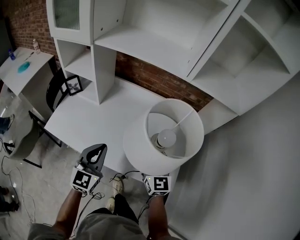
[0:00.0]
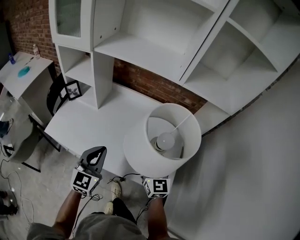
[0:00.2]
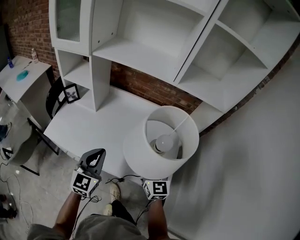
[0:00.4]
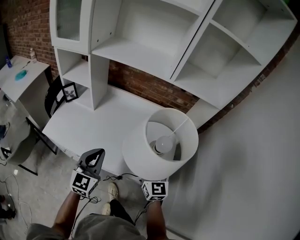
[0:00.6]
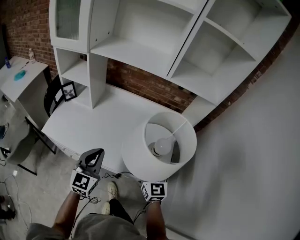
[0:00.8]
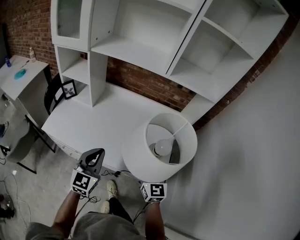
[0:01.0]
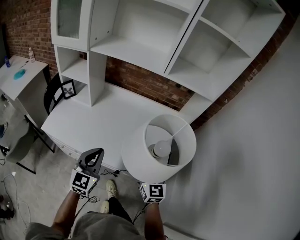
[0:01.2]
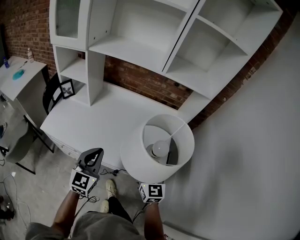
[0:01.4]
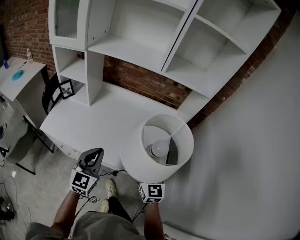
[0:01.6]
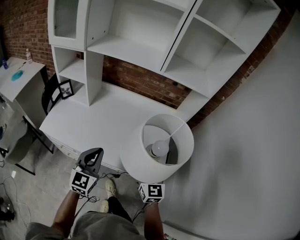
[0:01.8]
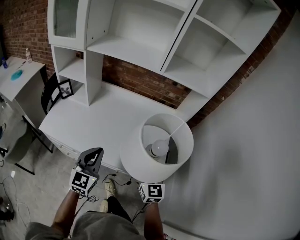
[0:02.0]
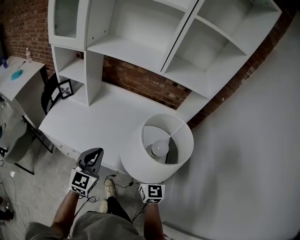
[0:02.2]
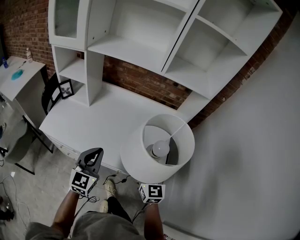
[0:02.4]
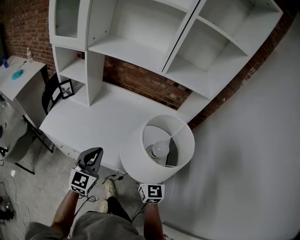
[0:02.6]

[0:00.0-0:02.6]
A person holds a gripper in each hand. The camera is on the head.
0:00.0 to 0:01.2: The two grippers go approximately 10 cm backward.
0:01.2 to 0:02.6: Both grippers stay about where they are.

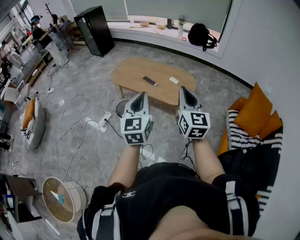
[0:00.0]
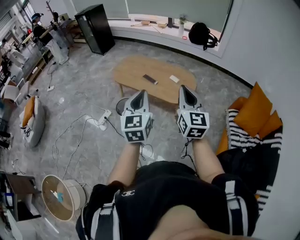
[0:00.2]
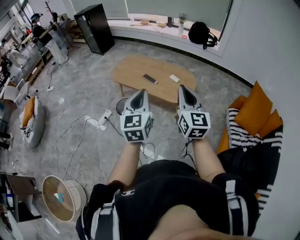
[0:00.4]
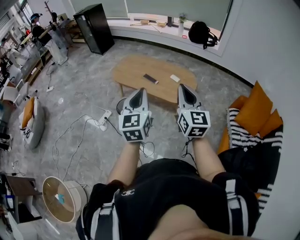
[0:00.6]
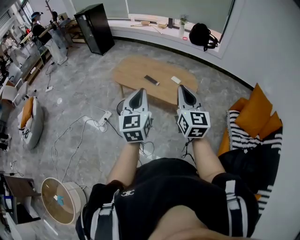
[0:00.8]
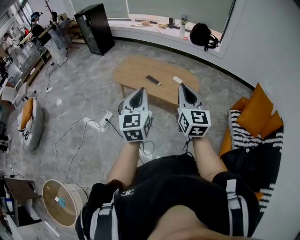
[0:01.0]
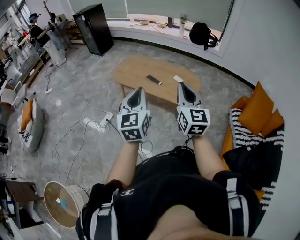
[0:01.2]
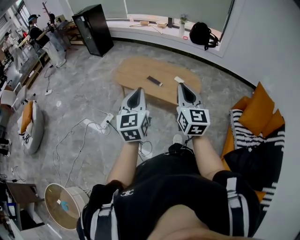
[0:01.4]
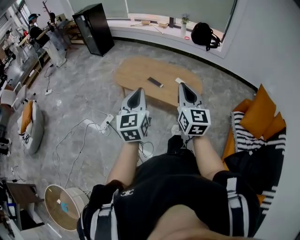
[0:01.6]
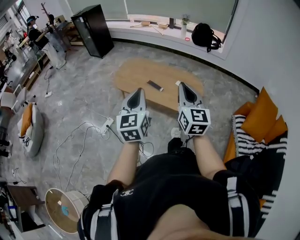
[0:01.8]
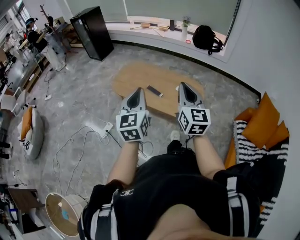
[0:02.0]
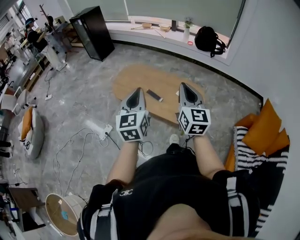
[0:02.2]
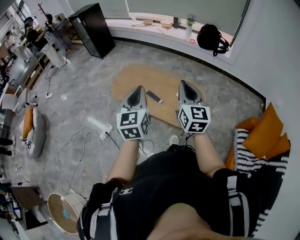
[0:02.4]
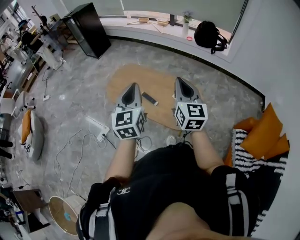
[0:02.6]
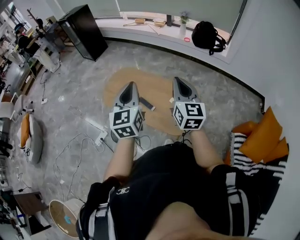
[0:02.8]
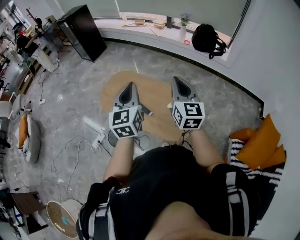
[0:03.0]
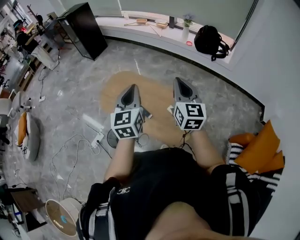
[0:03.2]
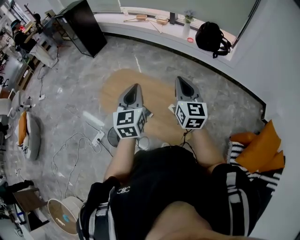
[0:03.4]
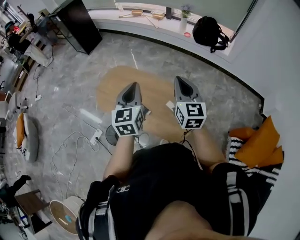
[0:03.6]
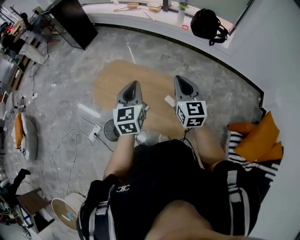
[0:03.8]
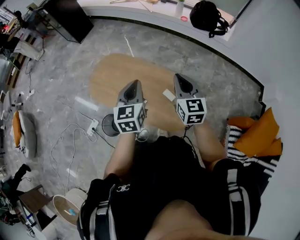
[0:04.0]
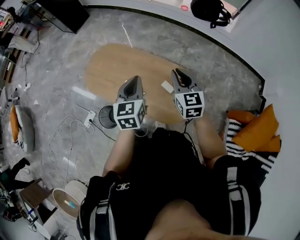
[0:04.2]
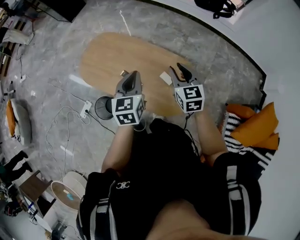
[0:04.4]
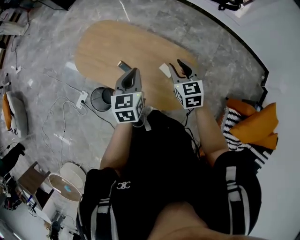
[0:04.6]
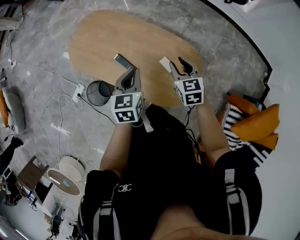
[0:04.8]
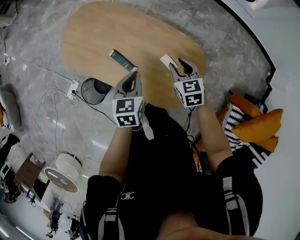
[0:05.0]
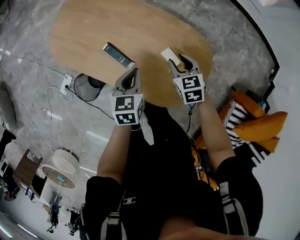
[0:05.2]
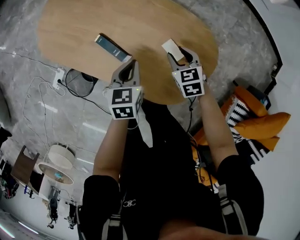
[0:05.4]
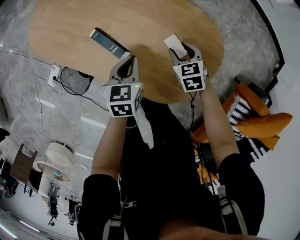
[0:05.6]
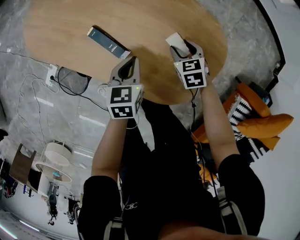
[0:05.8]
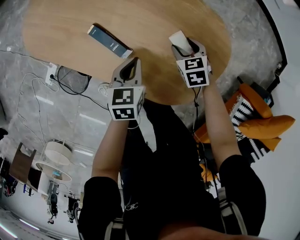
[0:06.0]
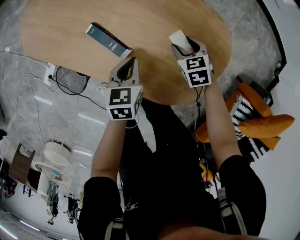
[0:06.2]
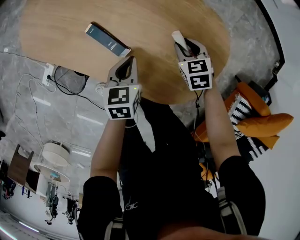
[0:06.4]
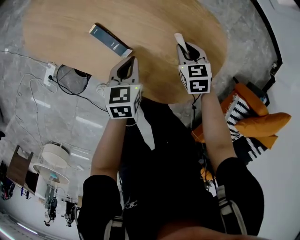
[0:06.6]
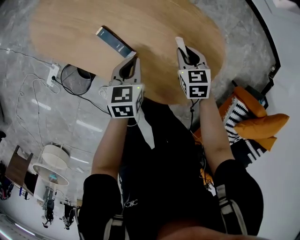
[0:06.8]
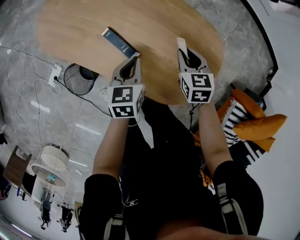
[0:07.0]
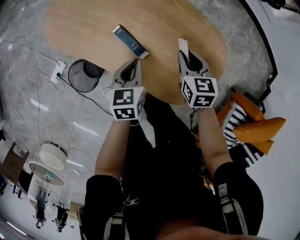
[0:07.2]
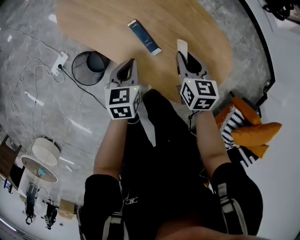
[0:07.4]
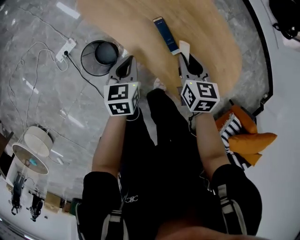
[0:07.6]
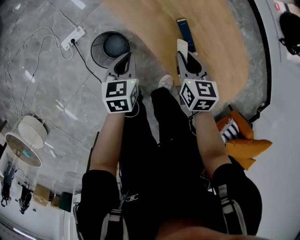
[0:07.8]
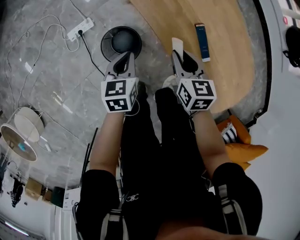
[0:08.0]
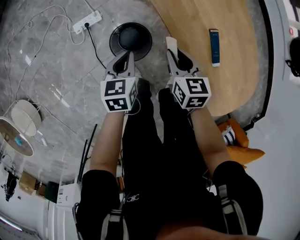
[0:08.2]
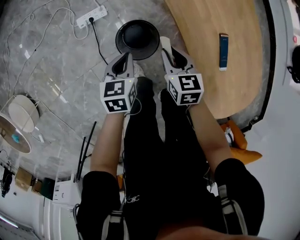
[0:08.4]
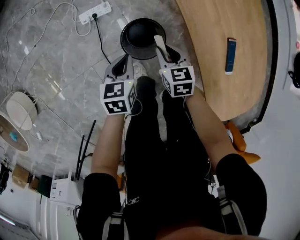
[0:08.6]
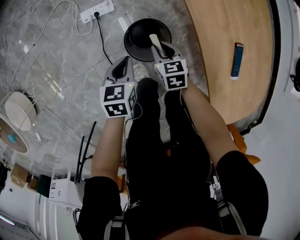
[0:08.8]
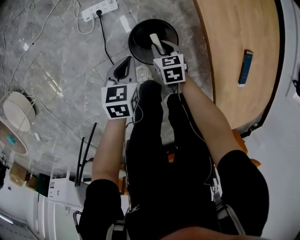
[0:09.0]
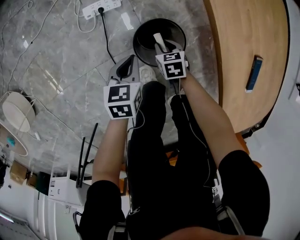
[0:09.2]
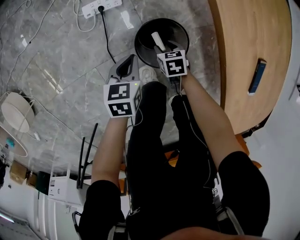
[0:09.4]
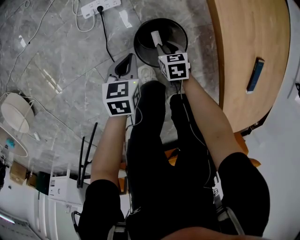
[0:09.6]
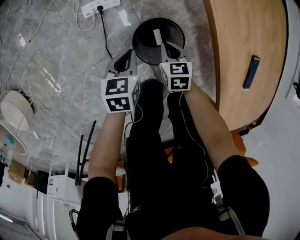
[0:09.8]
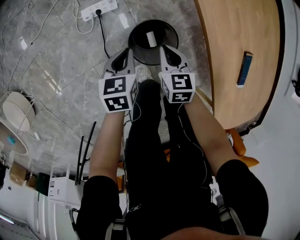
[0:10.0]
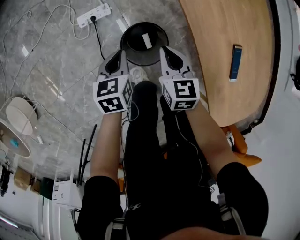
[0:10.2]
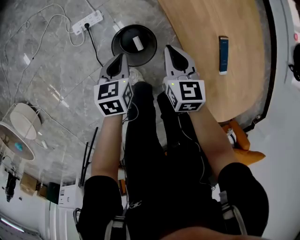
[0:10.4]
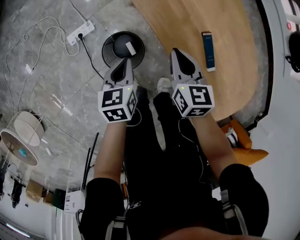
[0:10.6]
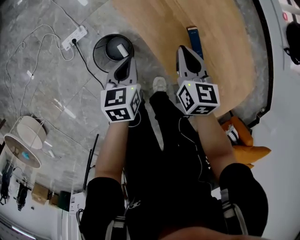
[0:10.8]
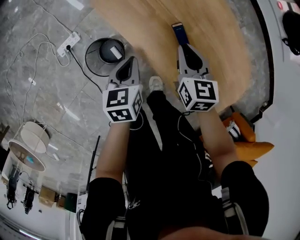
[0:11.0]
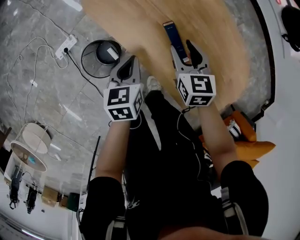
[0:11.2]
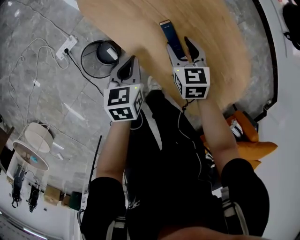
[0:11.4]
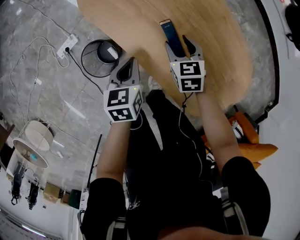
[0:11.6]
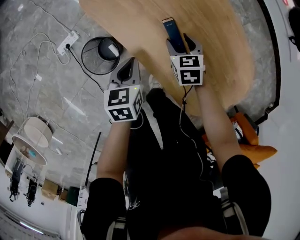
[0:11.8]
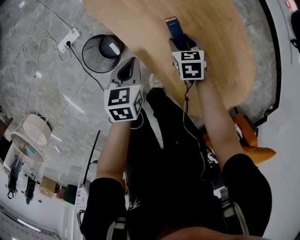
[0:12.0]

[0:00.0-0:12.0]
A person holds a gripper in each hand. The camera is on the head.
0:00.0 to 0:01.6: Both grippers move to the left and forward, roughly 10 cm.
0:01.6 to 0:03.0: The pair of grippers is taken forward, about 40 cm.
0:03.0 to 0:04.4: The two grippers go approximately 25 cm downward and forward. The right gripper rotates some 30 degrees, while the left gripper rotates some 20 degrees.
0:04.4 to 0:06.0: The two grippers go some 50 cm downward. The right gripper points its fingers about 40 degrees further downward, and opens up. Meanwhile the left gripper rotates approximately 30 degrees.
0:06.0 to 0:07.6: The right gripper goes roughly 30 cm to the left and upward, and closes; the left gripper goes some 25 cm to the left, and turns by some 20 degrees.
0:07.6 to 0:09.0: The right gripper ends up about 50 cm from where it was, and changes its angle by approximately 40 degrees; the left gripper moves approximately 35 cm, and rotates some 20 degrees.
0:09.0 to 0:10.4: The right gripper heads upward and to the right, covering about 25 cm, rotates roughly 30 degrees, and opens, then closes again, while the left gripper travels upward and to the right by roughly 10 cm.
0:10.4 to 0:12.0: Both grippers travel together to the right, about 30 cm. The right gripper opens its fingers.

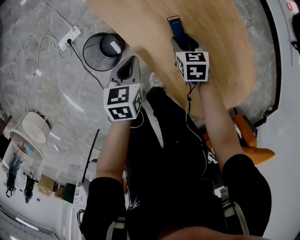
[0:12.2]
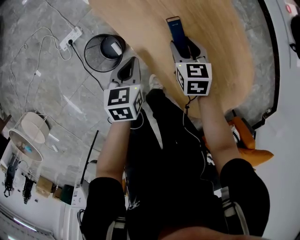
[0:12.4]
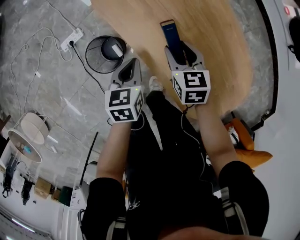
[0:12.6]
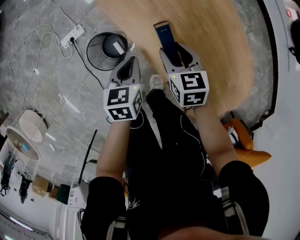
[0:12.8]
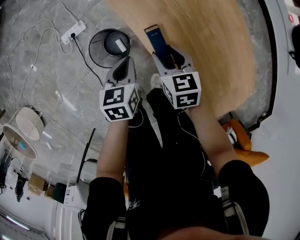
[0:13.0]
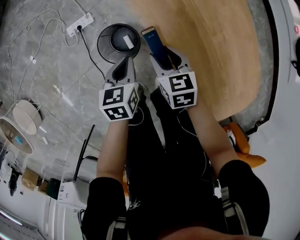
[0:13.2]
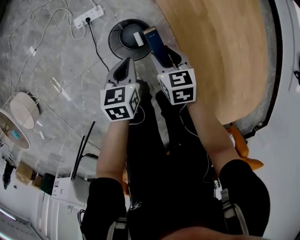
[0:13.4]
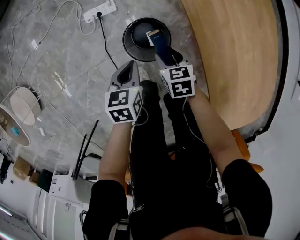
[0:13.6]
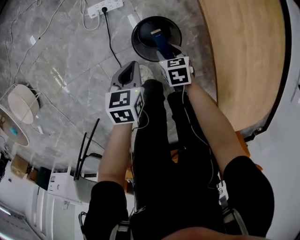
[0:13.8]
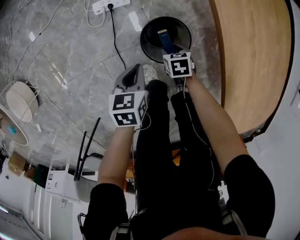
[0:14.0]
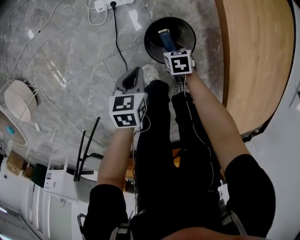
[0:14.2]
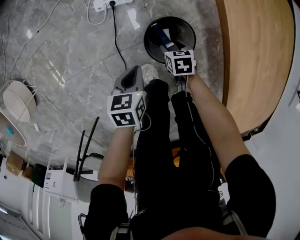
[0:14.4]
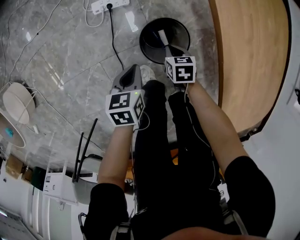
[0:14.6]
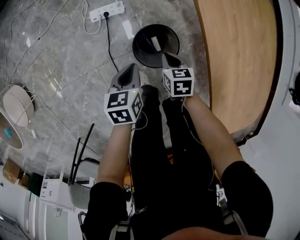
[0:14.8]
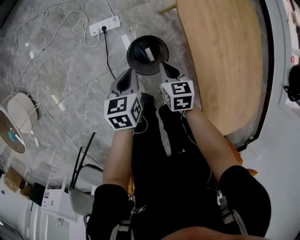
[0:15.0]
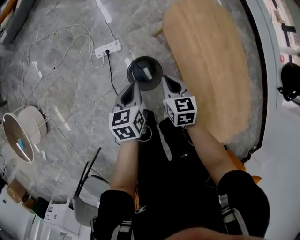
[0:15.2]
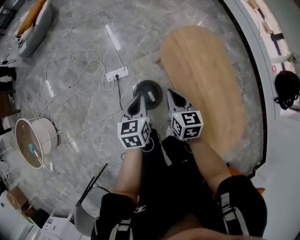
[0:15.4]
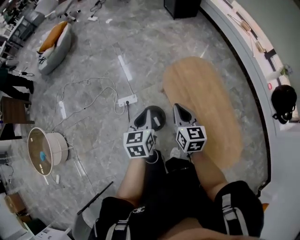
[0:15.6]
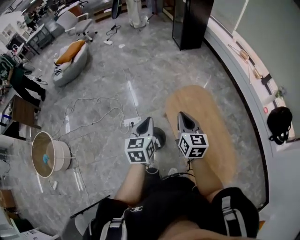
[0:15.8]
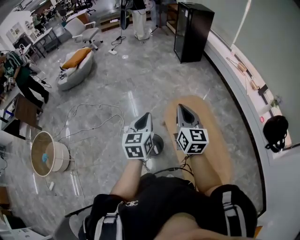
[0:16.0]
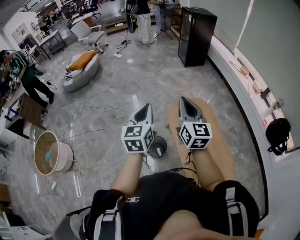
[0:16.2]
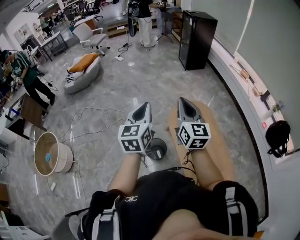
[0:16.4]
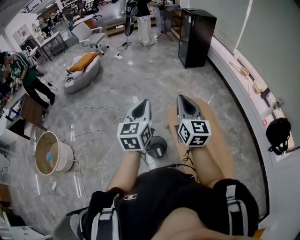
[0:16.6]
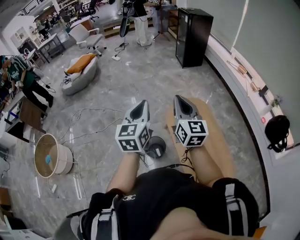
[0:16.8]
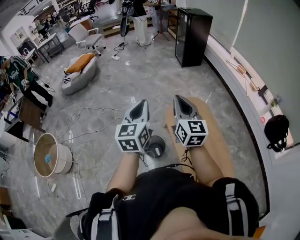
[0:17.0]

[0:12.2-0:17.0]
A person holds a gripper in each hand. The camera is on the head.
0:12.2 to 0:13.8: The left gripper changes place by some 35 cm. The right gripper shifts by approximately 40 cm, and turns by some 20 degrees.
0:13.8 to 0:15.4: The two grippers go some 35 cm upward. The right gripper tips its fingers upward by roughly 30 degrees, and closes up; the left gripper changes its angle by some 20 degrees.
0:15.4 to 0:17.0: Both grippers move upward, about 40 cm. The right gripper angles its fingers upward, by about 40 degrees. The left gripper angles its fingers upward, by about 30 degrees.

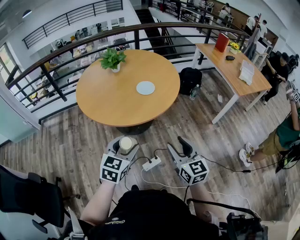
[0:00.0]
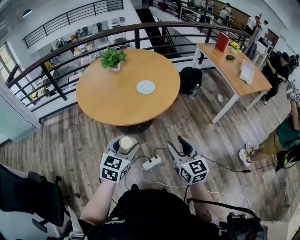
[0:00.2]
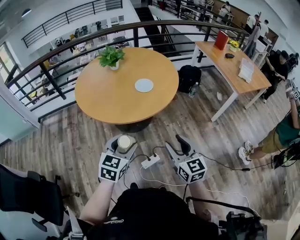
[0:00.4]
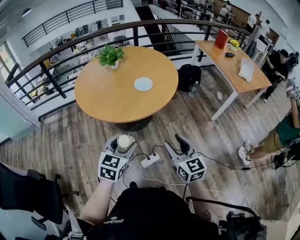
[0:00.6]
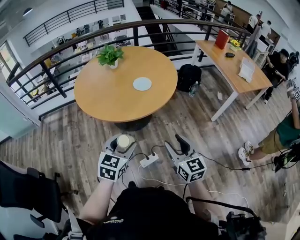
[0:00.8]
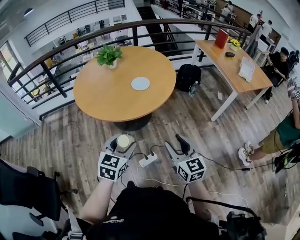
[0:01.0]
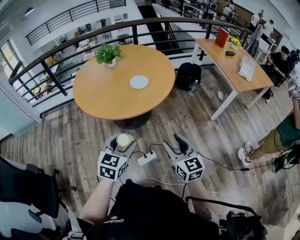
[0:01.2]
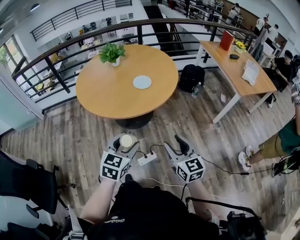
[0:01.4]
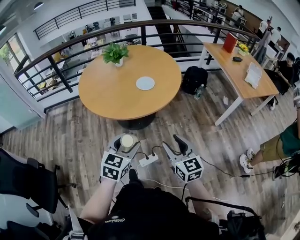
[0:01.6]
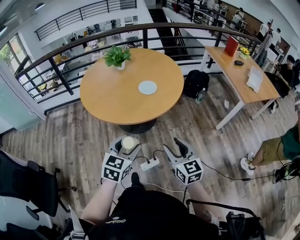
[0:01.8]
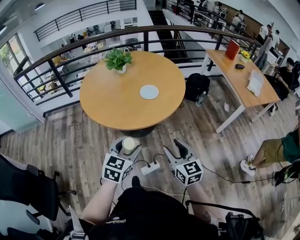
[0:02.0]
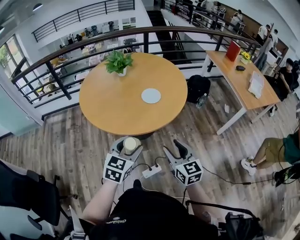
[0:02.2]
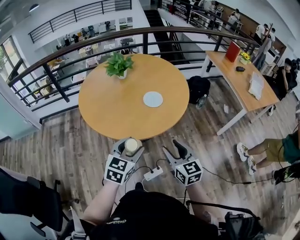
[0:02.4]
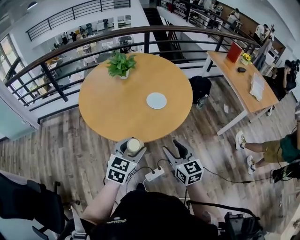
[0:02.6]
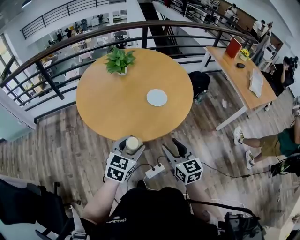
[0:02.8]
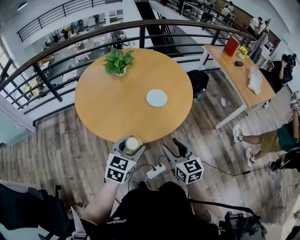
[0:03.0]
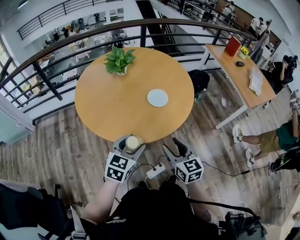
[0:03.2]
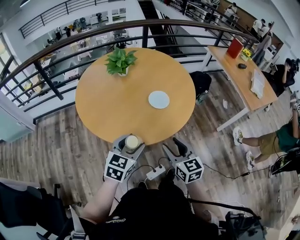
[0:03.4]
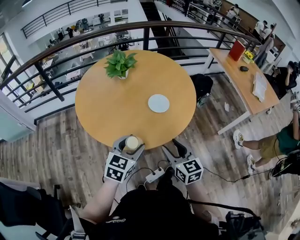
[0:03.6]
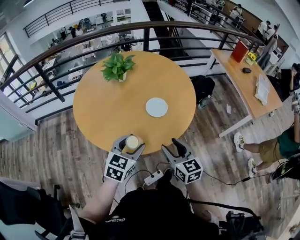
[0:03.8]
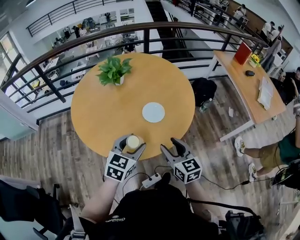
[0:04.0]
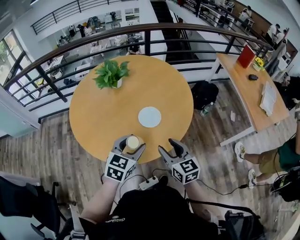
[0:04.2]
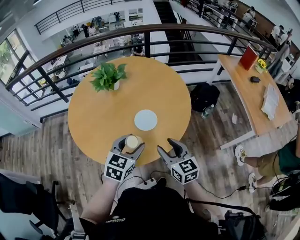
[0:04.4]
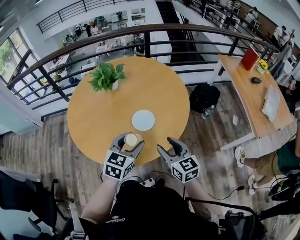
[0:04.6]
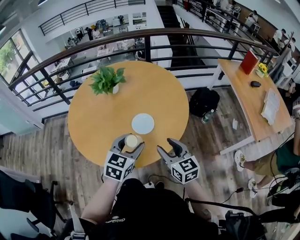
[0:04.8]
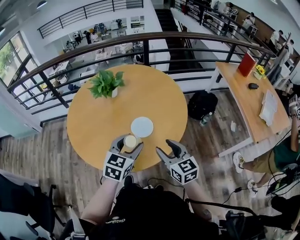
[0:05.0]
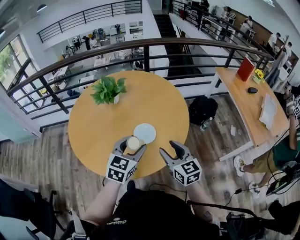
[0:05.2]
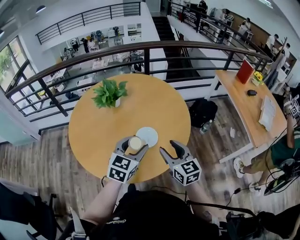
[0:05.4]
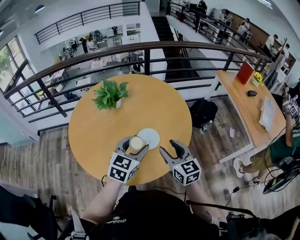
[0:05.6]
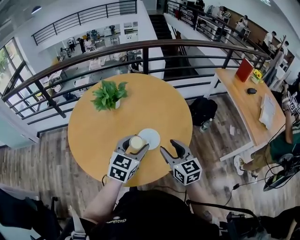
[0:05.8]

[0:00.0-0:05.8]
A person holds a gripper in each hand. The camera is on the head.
0:00.0 to 0:01.4: Both grippers move to the right, some 5 cm.
0:01.4 to 0:02.8: The two grippers go some 25 cm forward and to the left.
0:02.8 to 0:04.4: The two grippers go approximately 25 cm forward and to the right.
0:04.4 to 0:05.8: The two grippers go some 10 cm forward.
